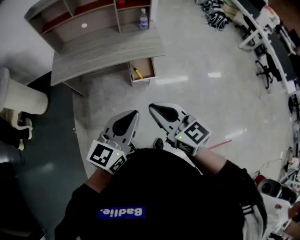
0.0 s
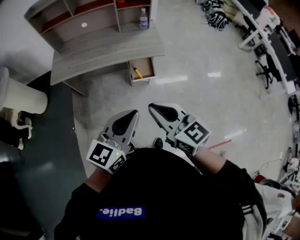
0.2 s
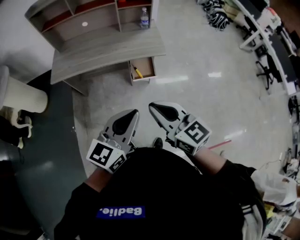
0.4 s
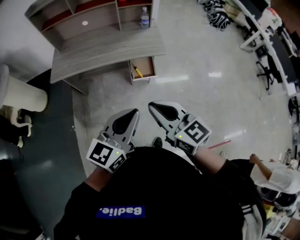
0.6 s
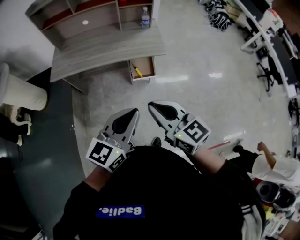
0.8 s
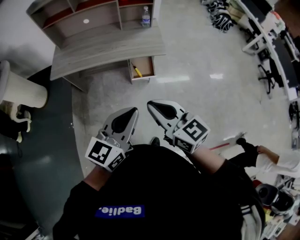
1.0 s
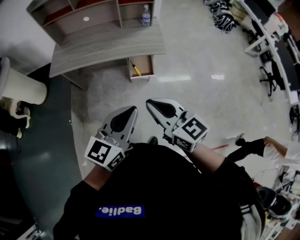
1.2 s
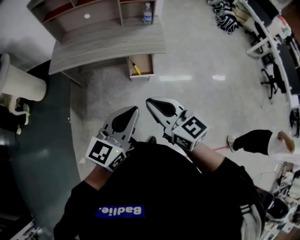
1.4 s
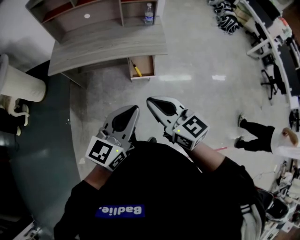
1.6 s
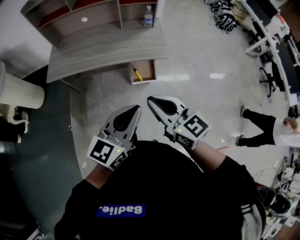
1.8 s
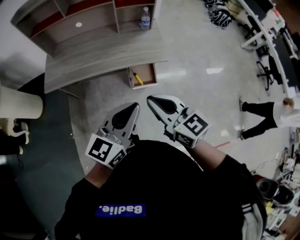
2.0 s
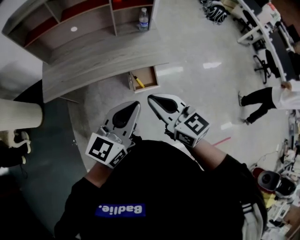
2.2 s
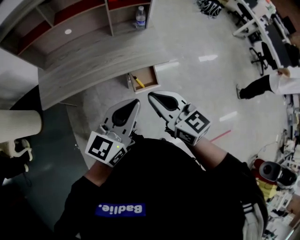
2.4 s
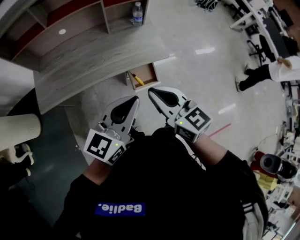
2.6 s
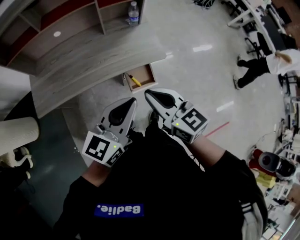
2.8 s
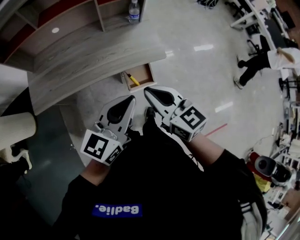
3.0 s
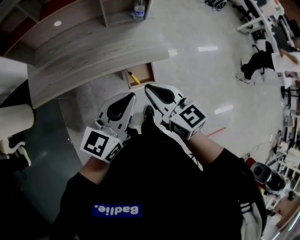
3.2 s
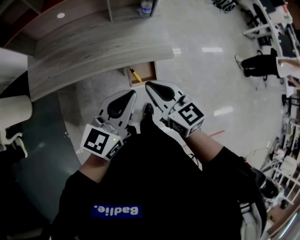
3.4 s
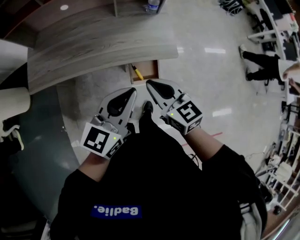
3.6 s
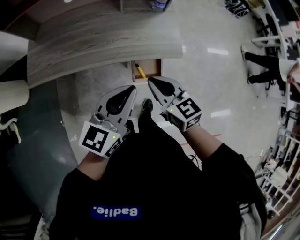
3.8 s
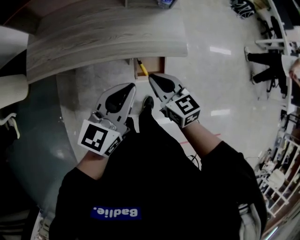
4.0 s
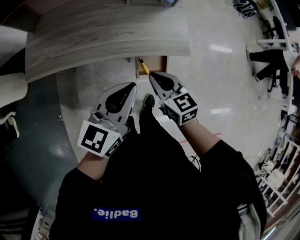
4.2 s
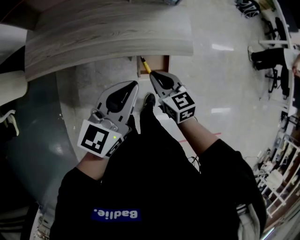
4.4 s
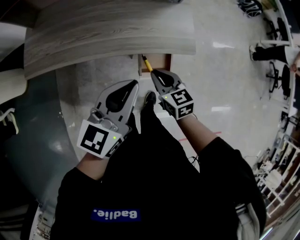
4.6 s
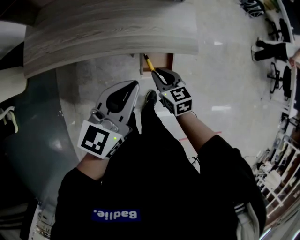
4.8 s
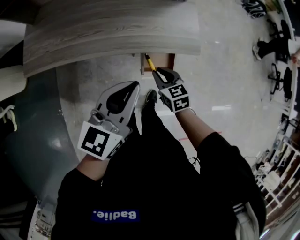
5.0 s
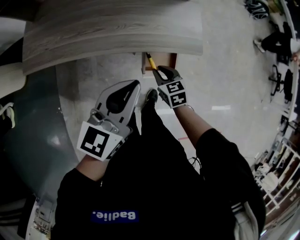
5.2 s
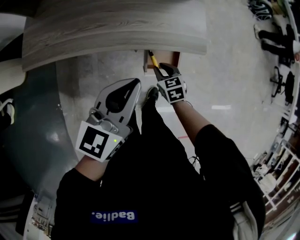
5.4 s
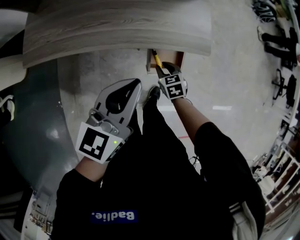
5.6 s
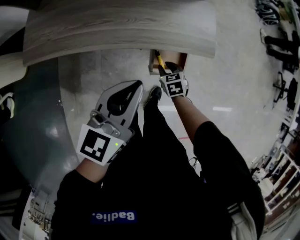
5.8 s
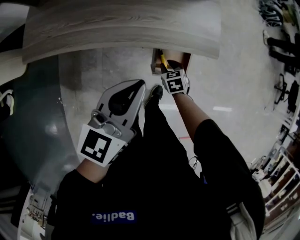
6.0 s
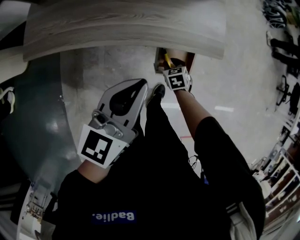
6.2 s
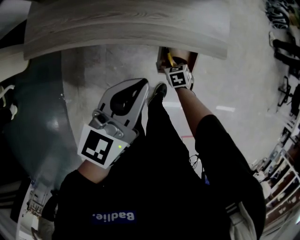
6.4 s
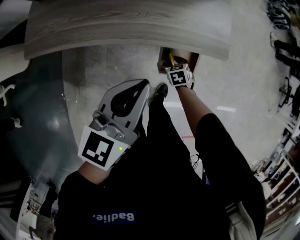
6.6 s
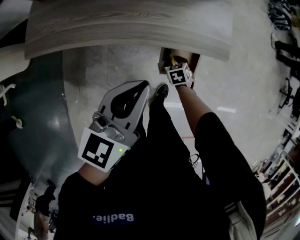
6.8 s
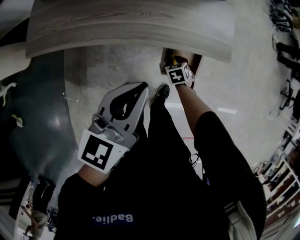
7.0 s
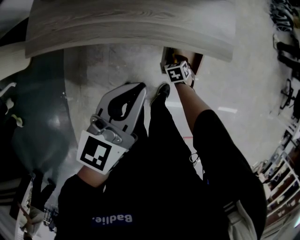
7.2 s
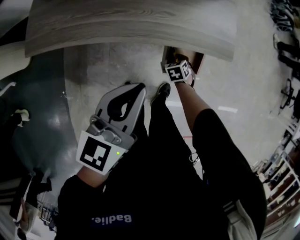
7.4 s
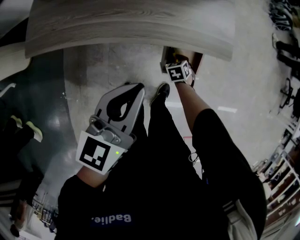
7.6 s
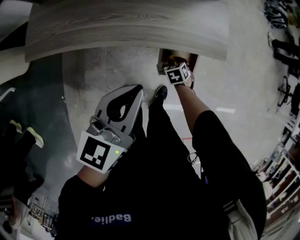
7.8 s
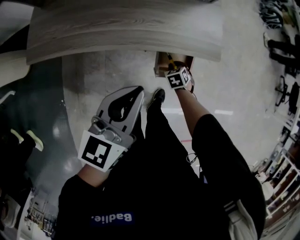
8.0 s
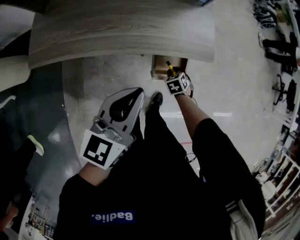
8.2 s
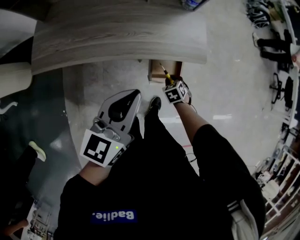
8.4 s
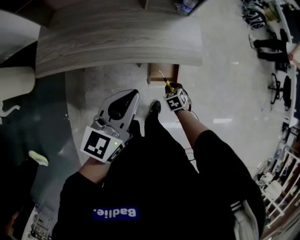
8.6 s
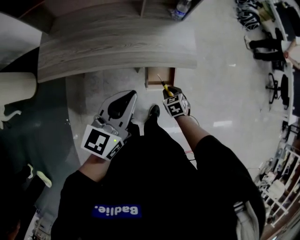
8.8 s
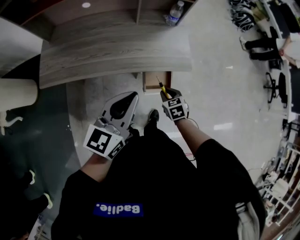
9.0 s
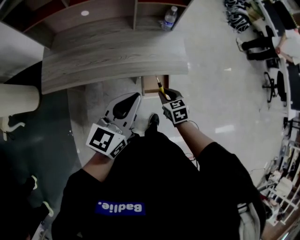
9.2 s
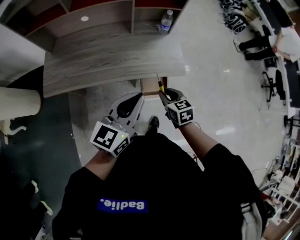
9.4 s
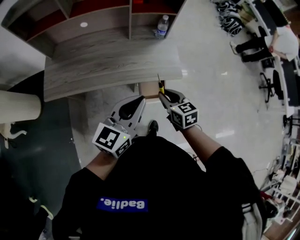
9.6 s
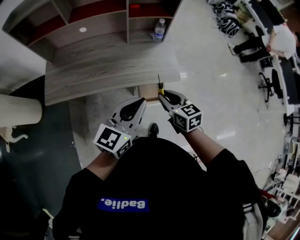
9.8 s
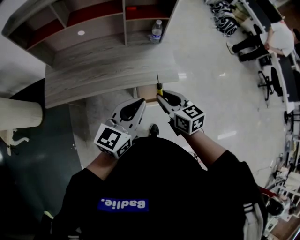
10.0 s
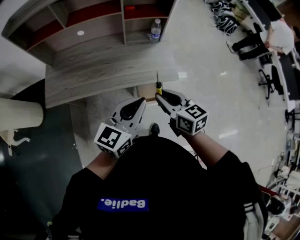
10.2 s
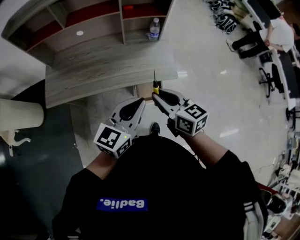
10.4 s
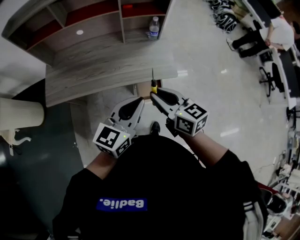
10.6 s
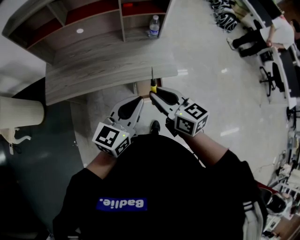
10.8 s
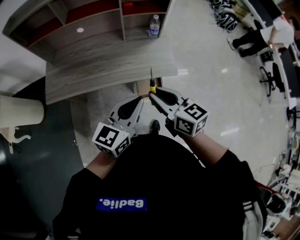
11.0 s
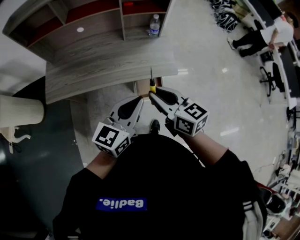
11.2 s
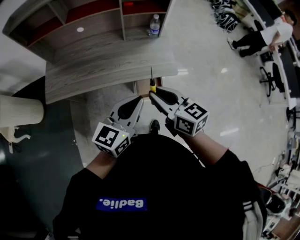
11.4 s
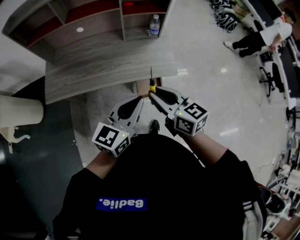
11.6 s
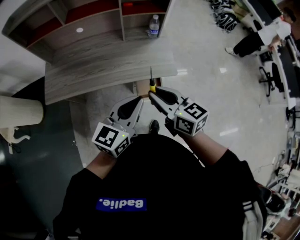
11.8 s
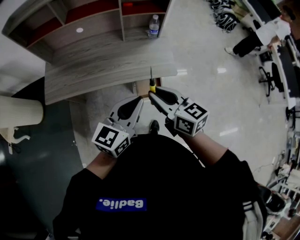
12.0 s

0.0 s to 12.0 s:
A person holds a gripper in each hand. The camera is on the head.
0.0 to 1.6 s: The left gripper moves approximately 5 cm. The right gripper ends up some 5 cm from where it was.
1.6 to 3.0 s: Both grippers move forward, roughly 25 cm.
3.0 to 4.4 s: The left gripper moves downward and forward, roughly 10 cm. Meanwhile the right gripper moves downward and forward, some 20 cm.
4.4 to 6.0 s: The left gripper travels downward by approximately 5 cm. The right gripper shifts roughly 25 cm downward, rotates about 30 degrees, and opens up.
6.0 to 7.6 s: The right gripper goes approximately 5 cm downward.
7.6 to 9.0 s: The left gripper shifts some 15 cm upward, while the right gripper goes some 25 cm upward.
9.0 to 10.4 s: The right gripper moves upward, about 30 cm, and tips its fingers upward by roughly 40 degrees. Meanwhile the left gripper travels to the right by some 5 cm.
10.4 to 12.0 s: There are only small adjustments of the grippers.

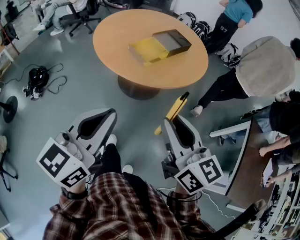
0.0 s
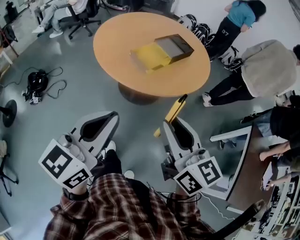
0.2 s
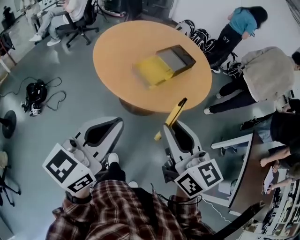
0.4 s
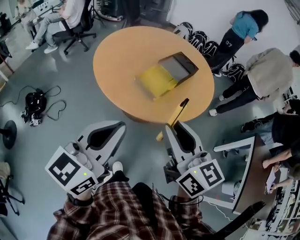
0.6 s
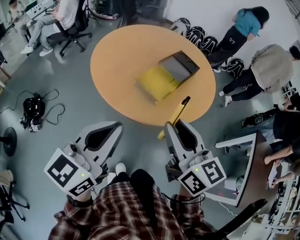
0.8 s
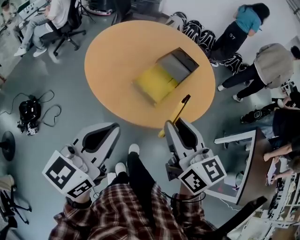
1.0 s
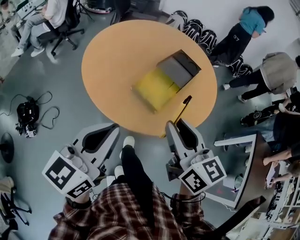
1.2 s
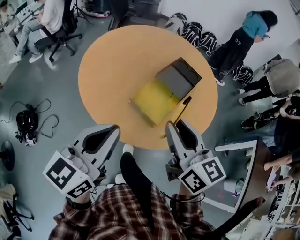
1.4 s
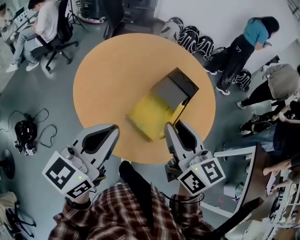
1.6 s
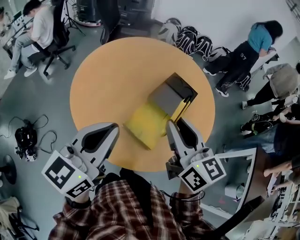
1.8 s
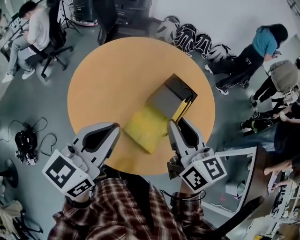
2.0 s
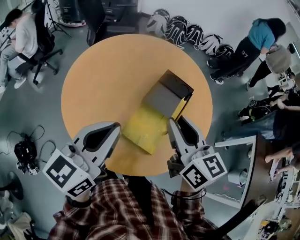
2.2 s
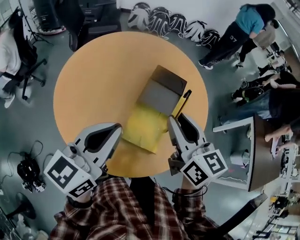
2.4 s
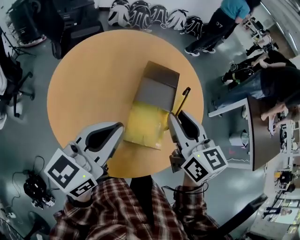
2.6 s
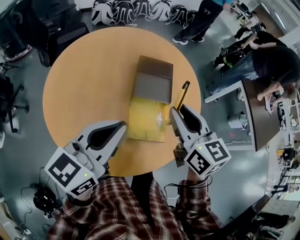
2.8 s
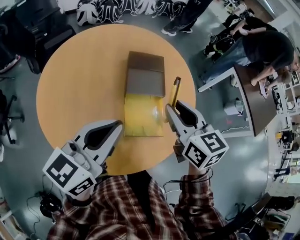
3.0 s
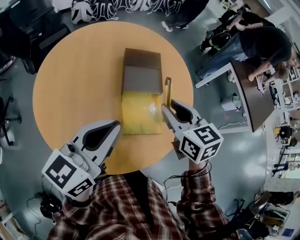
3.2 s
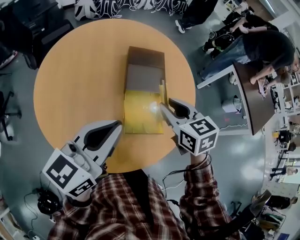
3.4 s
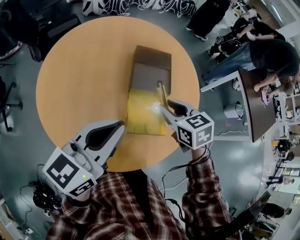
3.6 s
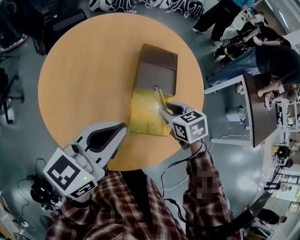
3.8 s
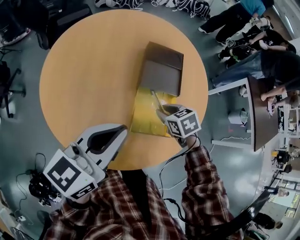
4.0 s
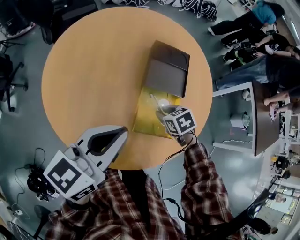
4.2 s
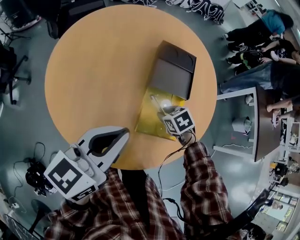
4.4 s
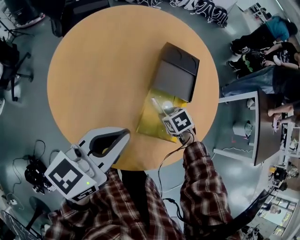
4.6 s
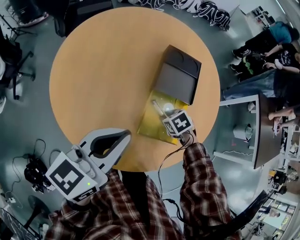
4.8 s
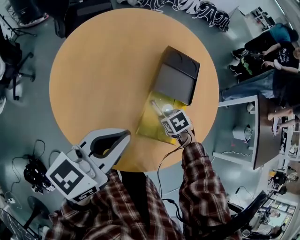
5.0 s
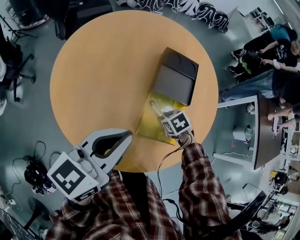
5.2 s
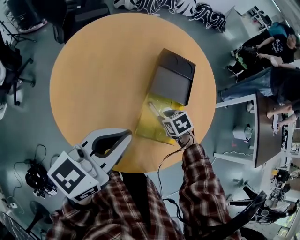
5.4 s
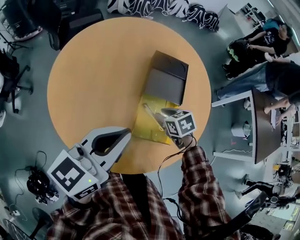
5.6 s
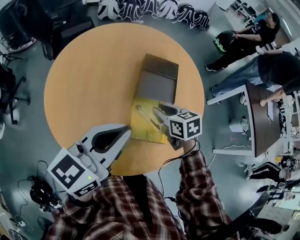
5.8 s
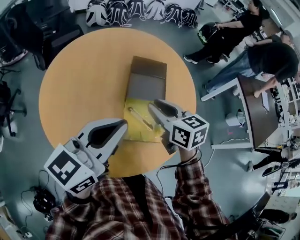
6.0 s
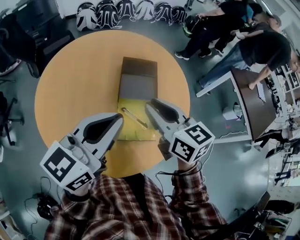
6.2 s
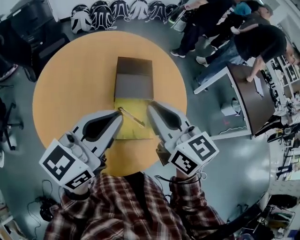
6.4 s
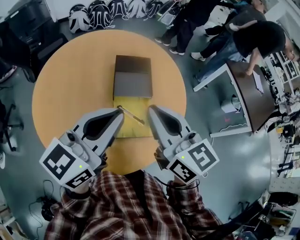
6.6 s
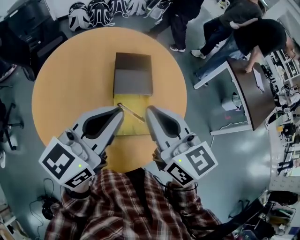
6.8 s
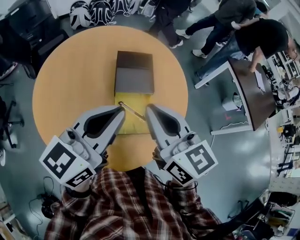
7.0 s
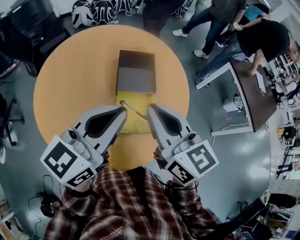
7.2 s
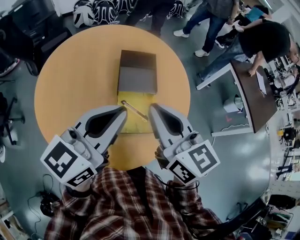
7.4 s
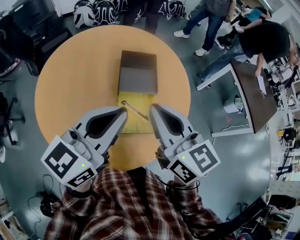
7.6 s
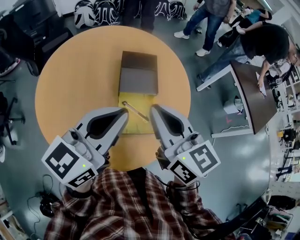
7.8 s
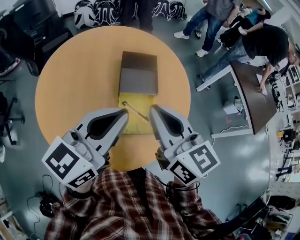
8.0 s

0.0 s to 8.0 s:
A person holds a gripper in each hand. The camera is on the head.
0.0 to 1.6 s: Both grippers are carried forward, some 50 cm.
1.6 to 3.2 s: The right gripper moves approximately 15 cm, and rotates roughly 40 degrees; the left gripper shifts by roughly 20 cm, and swivels some 50 degrees.
3.2 to 4.8 s: The right gripper travels downward by some 30 cm, and tilts its fingers some 50 degrees downward, while the left gripper shifts by roughly 5 cm.
4.8 to 6.4 s: The right gripper travels upward by some 35 cm, and tilts its fingers approximately 60 degrees upward. The left gripper travels upward by roughly 10 cm.
6.4 to 8.0 s: There are only small adjustments of the grippers.

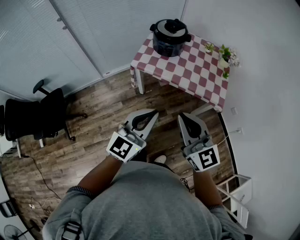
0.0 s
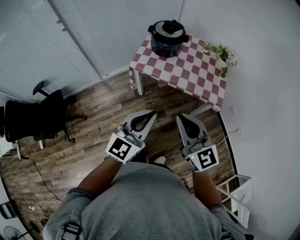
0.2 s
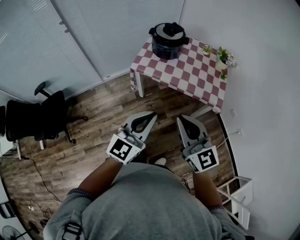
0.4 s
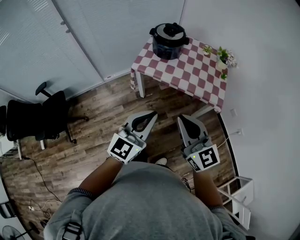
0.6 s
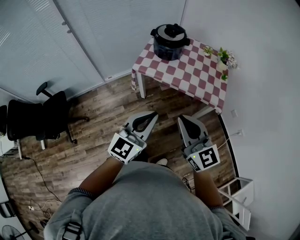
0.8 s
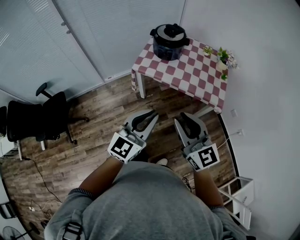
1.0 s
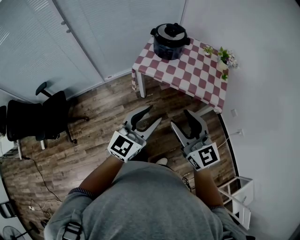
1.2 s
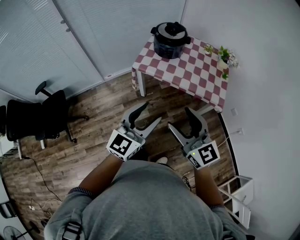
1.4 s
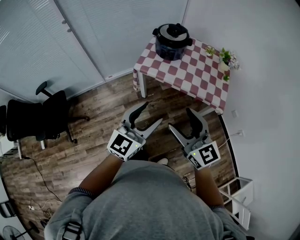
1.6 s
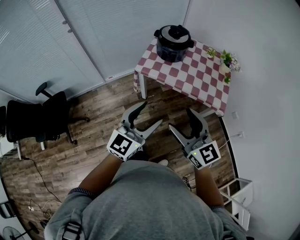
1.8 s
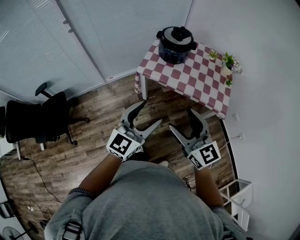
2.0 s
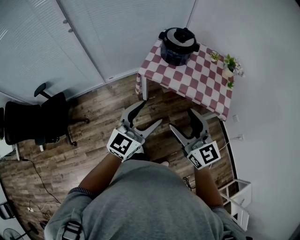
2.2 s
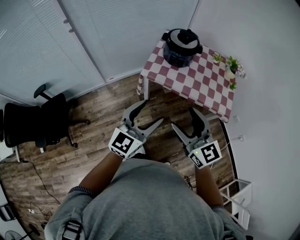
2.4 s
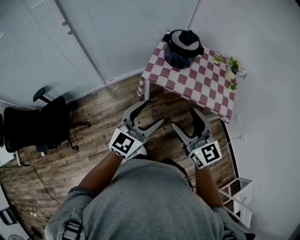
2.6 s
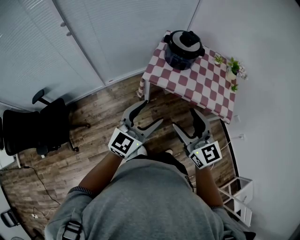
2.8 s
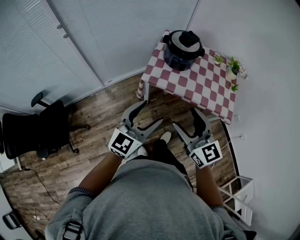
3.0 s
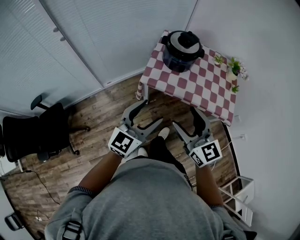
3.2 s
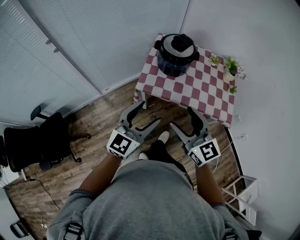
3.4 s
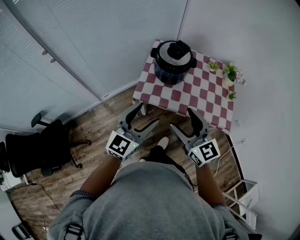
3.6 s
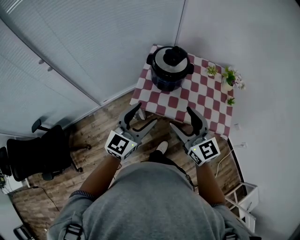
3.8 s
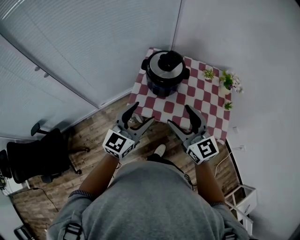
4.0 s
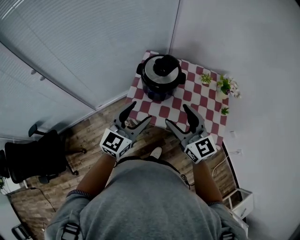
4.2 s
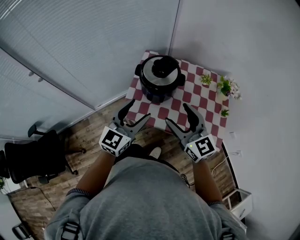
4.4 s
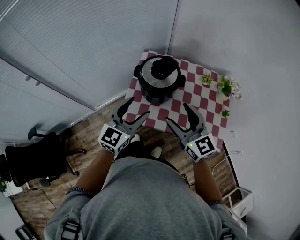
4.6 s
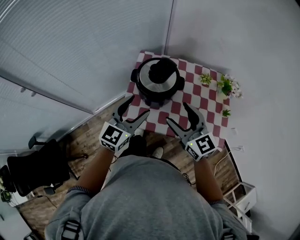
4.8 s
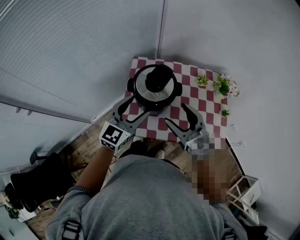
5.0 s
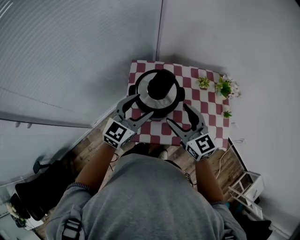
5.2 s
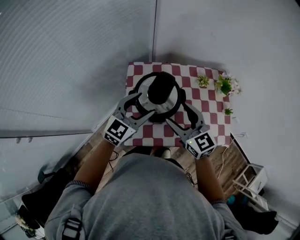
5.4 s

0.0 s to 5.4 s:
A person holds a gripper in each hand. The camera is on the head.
0.0 to 1.4 s: The left gripper opens its fingers; the right gripper opens its fingers.
1.4 to 2.8 s: Both grippers move forward and to the left, roughly 15 cm.
2.8 to 4.0 s: The grippers both shift forward by approximately 20 cm.
4.0 to 5.4 s: The grippers both shift forward by roughly 25 cm. The left gripper rotates about 30 degrees.
